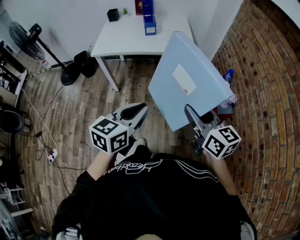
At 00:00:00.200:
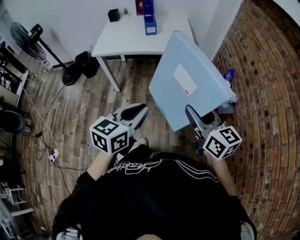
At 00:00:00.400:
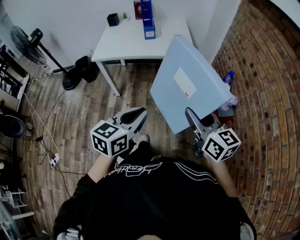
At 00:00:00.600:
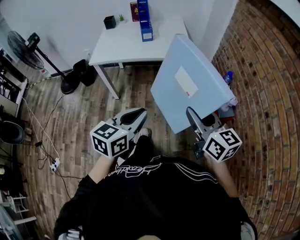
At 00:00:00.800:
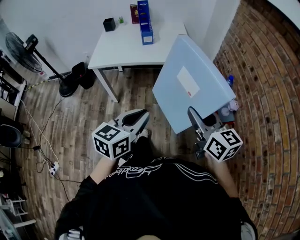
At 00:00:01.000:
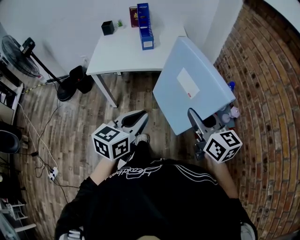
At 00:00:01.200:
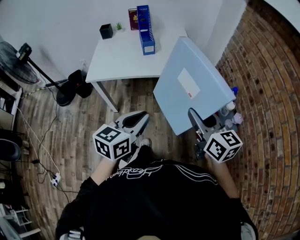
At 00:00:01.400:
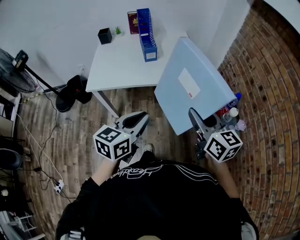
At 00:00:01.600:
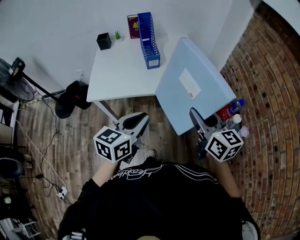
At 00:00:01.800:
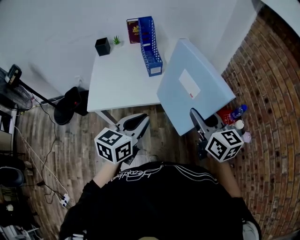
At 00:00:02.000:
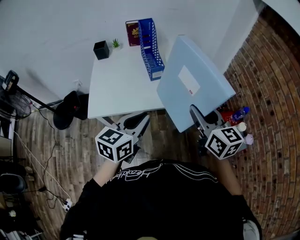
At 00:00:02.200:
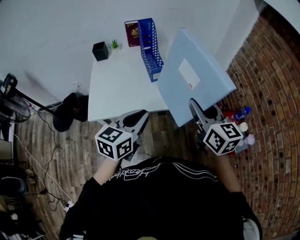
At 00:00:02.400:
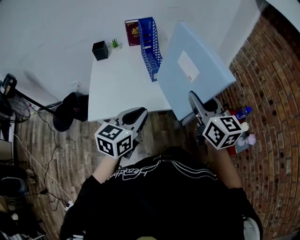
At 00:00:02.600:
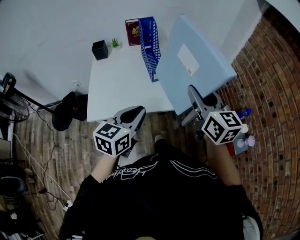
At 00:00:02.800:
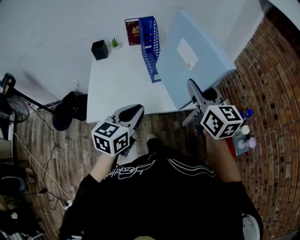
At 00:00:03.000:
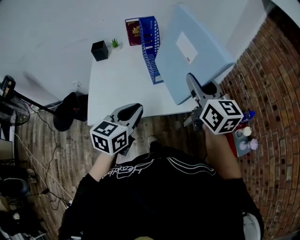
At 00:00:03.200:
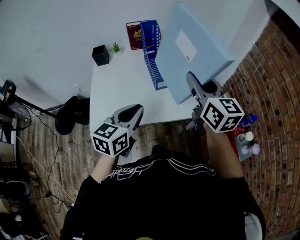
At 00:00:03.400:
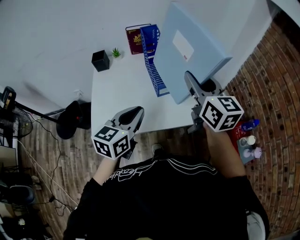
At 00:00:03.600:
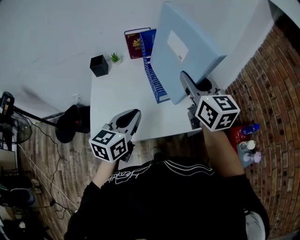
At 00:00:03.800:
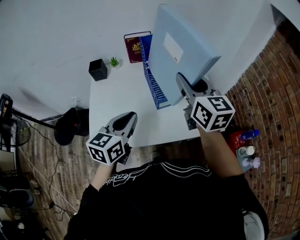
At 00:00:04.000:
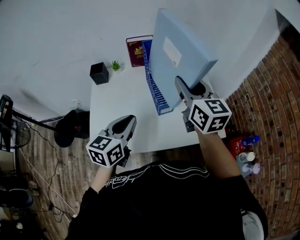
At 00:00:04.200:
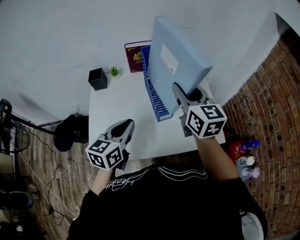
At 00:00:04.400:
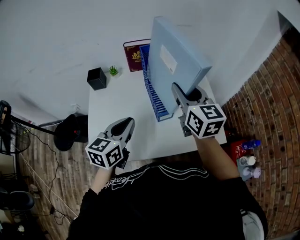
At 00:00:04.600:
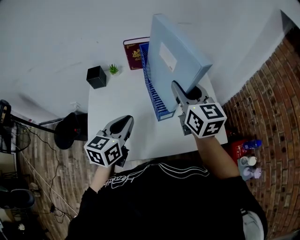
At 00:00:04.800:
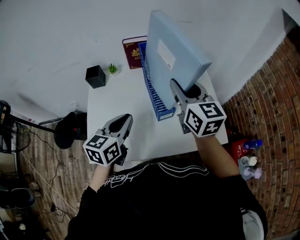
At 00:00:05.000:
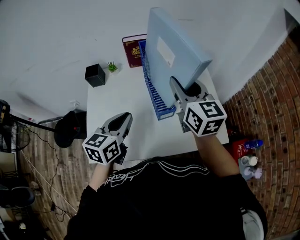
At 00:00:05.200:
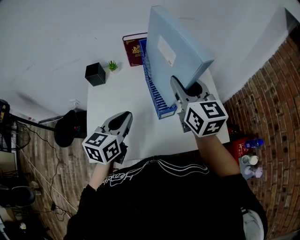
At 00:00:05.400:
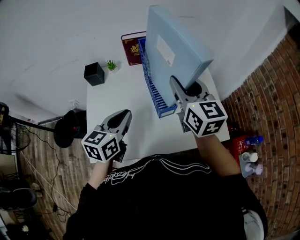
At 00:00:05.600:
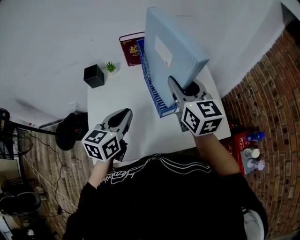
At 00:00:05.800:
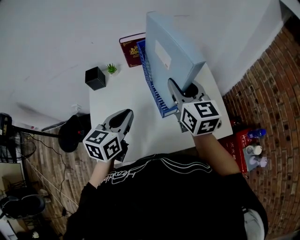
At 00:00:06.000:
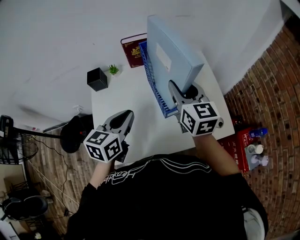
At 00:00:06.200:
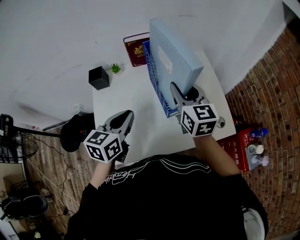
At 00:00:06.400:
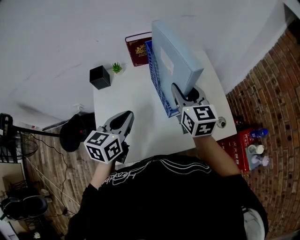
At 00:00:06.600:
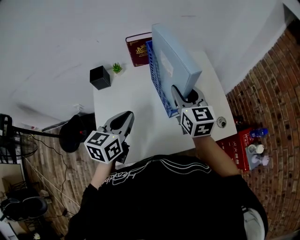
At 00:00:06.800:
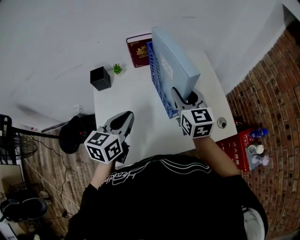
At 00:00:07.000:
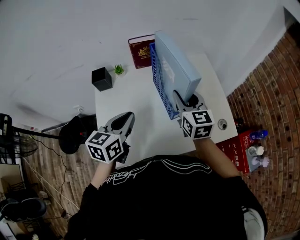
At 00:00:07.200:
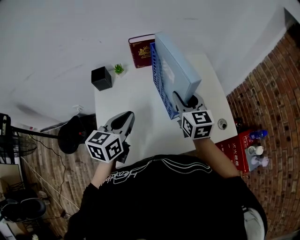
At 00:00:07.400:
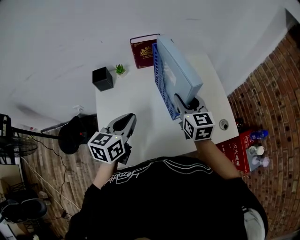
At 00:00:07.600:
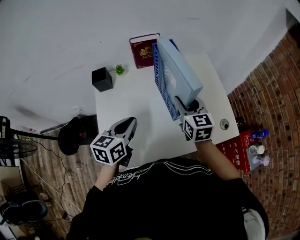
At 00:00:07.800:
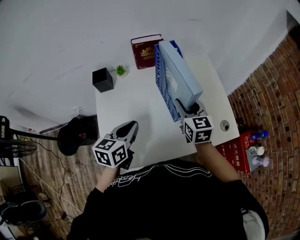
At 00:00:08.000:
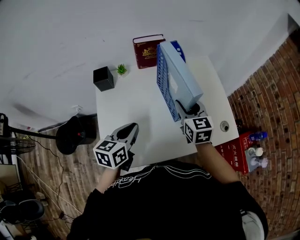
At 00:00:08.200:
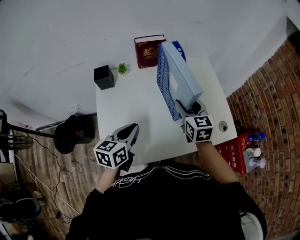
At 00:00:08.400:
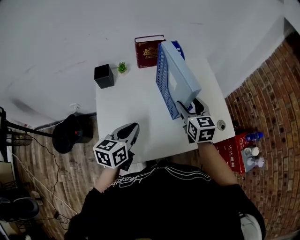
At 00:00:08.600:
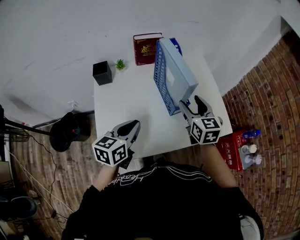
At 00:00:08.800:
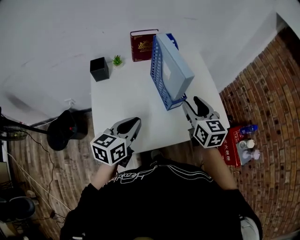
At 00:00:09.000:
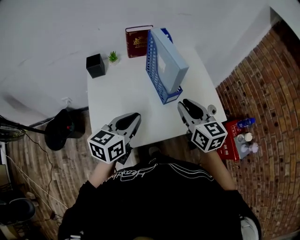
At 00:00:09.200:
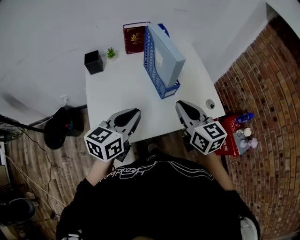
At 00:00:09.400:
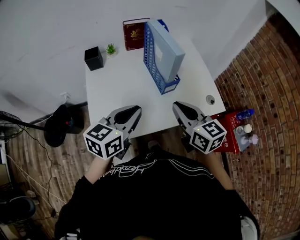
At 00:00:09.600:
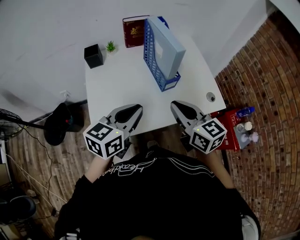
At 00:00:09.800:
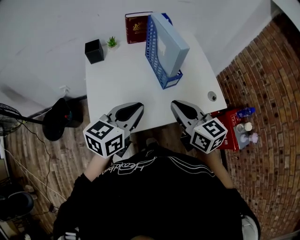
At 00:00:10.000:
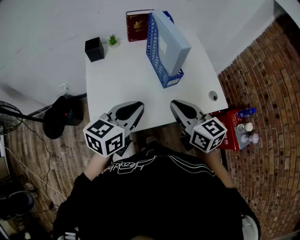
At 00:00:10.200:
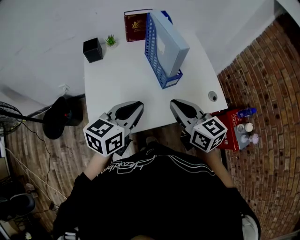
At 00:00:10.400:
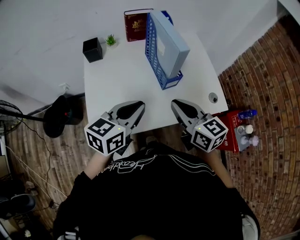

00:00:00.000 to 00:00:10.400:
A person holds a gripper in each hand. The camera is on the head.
00:00:00.000 to 00:00:01.400: The grippers both shift forward by approximately 20 cm.
00:00:01.400 to 00:00:03.000: The grippers both shift forward and to the left by about 30 cm.
00:00:03.000 to 00:00:04.400: The grippers both shift forward and to the left by roughly 20 cm.
00:00:04.400 to 00:00:06.000: There are only small adjustments of the grippers.
00:00:06.000 to 00:00:07.400: The right gripper shifts about 10 cm downward. Meanwhile the left gripper moves about 5 cm.
00:00:07.400 to 00:00:09.000: The right gripper goes some 15 cm backward, and opens and closes again. The left gripper travels backward by roughly 10 cm.
00:00:09.000 to 00:00:10.400: The right gripper shifts by roughly 5 cm.

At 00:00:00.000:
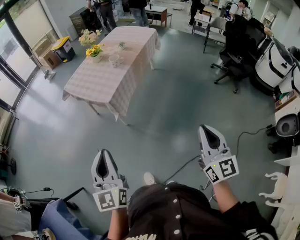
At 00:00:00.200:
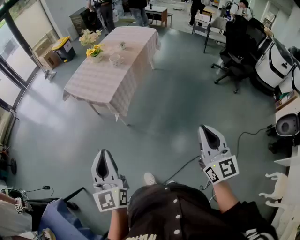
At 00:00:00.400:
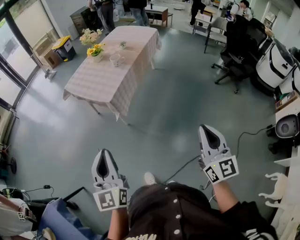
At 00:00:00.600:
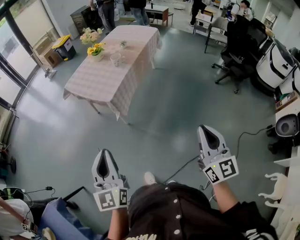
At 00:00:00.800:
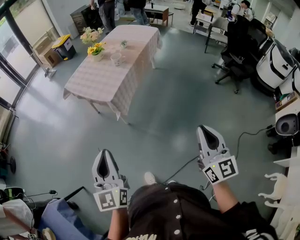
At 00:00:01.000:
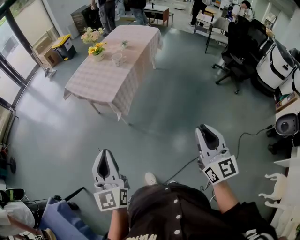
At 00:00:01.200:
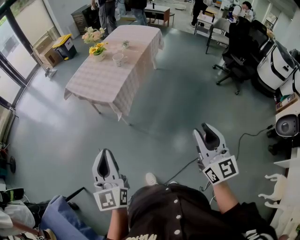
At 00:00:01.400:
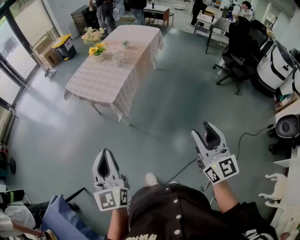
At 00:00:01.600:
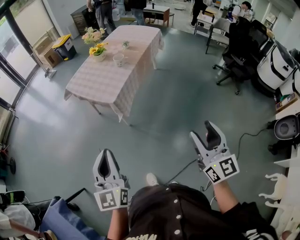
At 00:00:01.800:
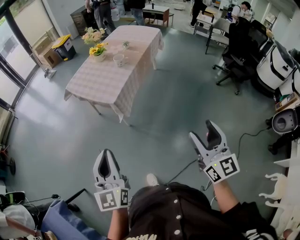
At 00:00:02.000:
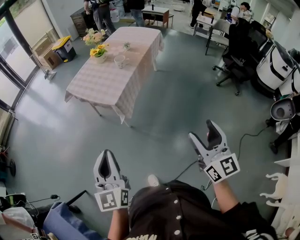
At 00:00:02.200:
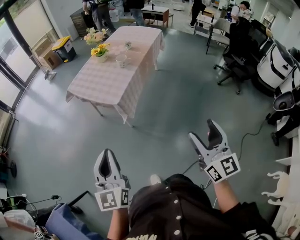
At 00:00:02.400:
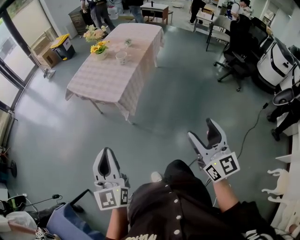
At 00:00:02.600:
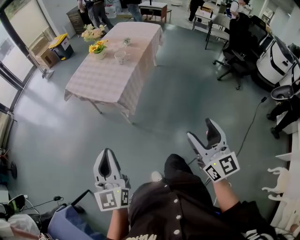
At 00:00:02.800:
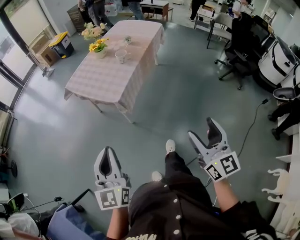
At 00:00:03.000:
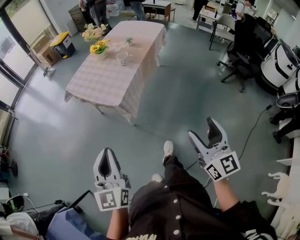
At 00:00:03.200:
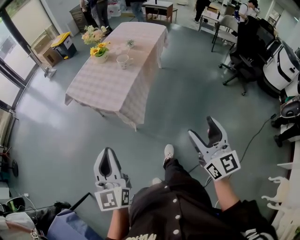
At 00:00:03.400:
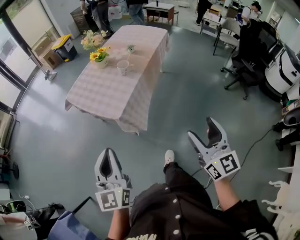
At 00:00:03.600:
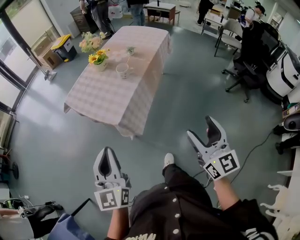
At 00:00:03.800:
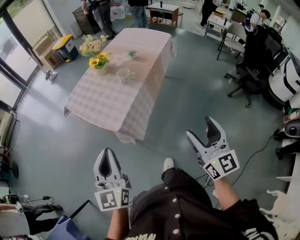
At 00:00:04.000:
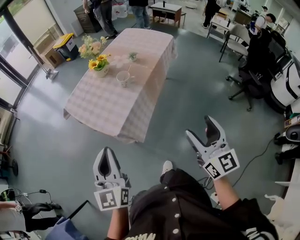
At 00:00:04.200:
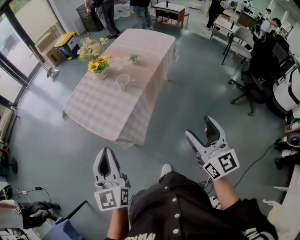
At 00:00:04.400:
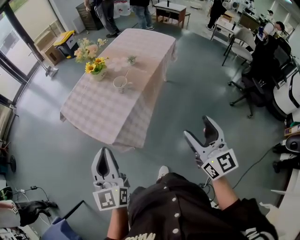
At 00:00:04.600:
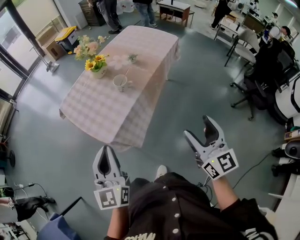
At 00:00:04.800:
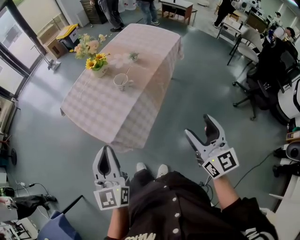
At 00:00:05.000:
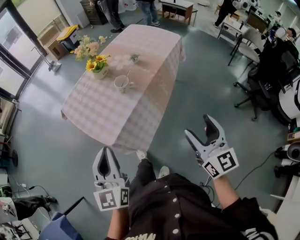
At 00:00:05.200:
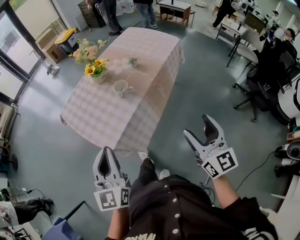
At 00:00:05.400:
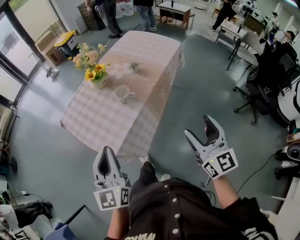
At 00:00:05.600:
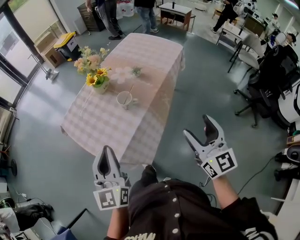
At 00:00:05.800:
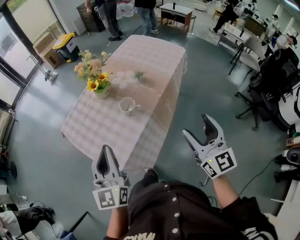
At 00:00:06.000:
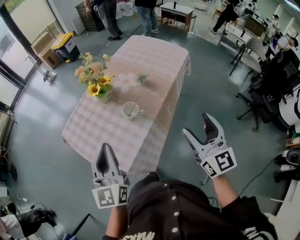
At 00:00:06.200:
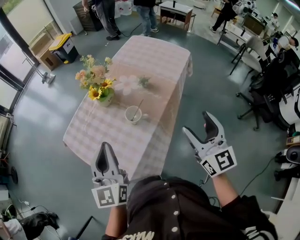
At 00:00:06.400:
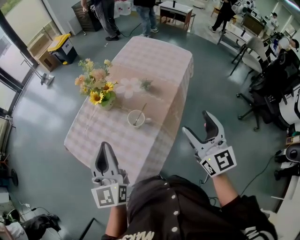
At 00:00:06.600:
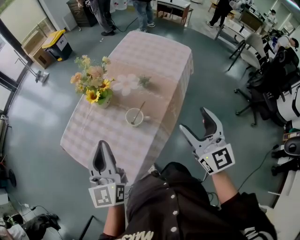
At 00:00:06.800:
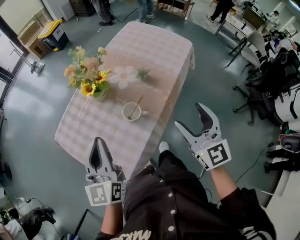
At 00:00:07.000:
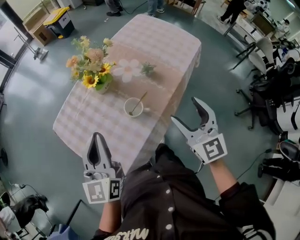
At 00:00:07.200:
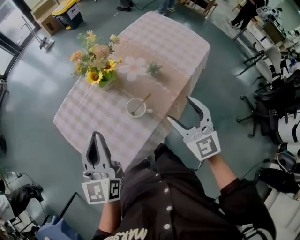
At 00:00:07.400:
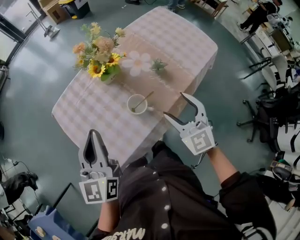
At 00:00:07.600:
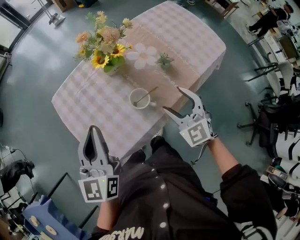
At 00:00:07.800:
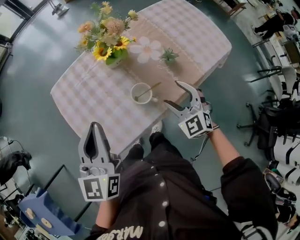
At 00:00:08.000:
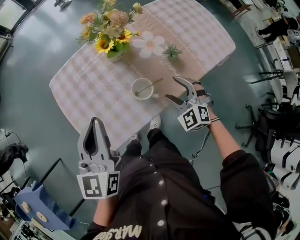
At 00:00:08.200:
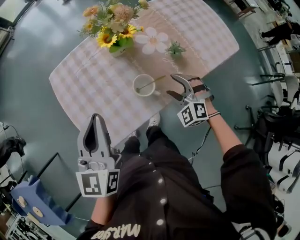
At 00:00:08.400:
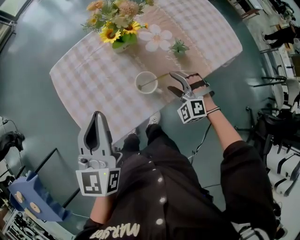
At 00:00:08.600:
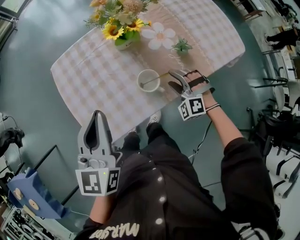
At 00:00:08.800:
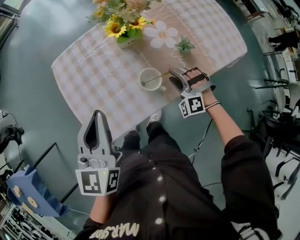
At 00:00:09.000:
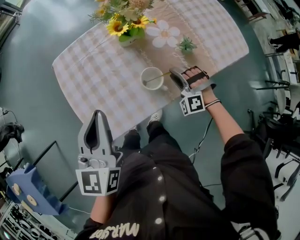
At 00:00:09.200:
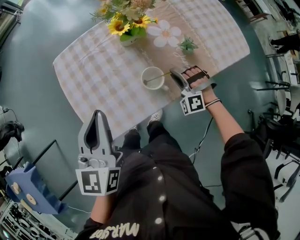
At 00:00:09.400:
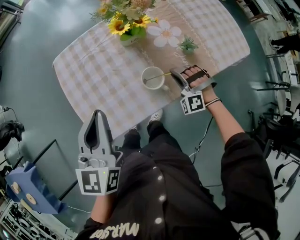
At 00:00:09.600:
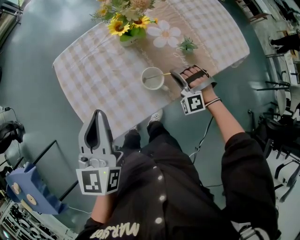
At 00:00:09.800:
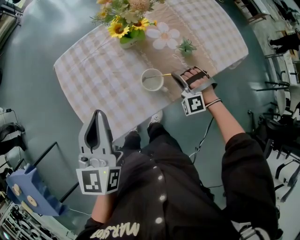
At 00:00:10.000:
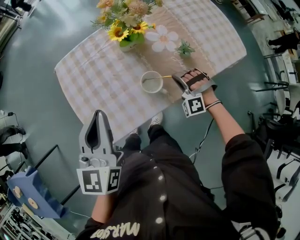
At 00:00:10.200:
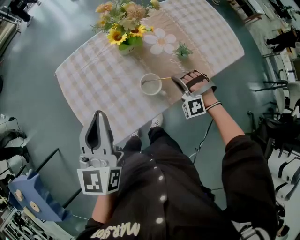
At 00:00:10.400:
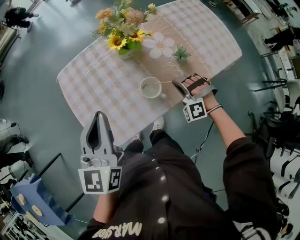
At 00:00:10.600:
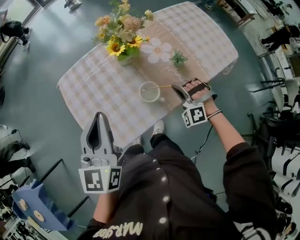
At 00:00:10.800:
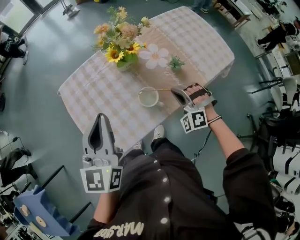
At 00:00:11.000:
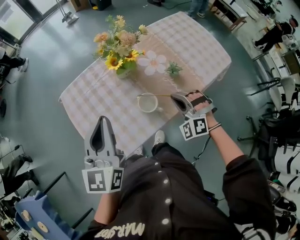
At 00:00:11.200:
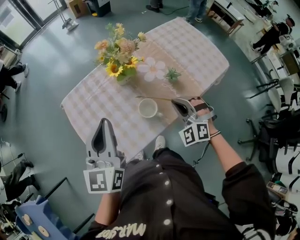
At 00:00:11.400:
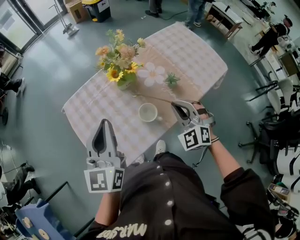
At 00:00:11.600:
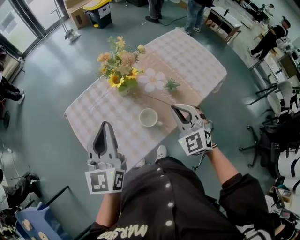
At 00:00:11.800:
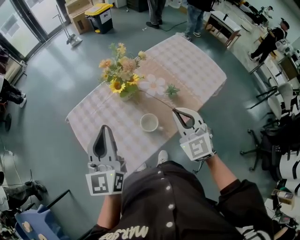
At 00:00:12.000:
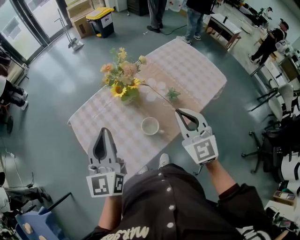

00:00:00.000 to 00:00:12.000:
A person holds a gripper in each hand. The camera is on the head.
00:00:00.000 to 00:00:01.600: The right gripper shifts by approximately 5 cm, and opens.
00:00:01.600 to 00:00:03.000: Both grippers travel together forward, roughly 10 cm.
00:00:03.000 to 00:00:04.400: The right gripper goes about 30 cm forward; the left gripper shifts some 30 cm forward and to the right.
00:00:04.400 to 00:00:06.000: The grippers both shift forward by roughly 25 cm.
00:00:06.000 to 00:00:07.600: The right gripper goes about 30 cm forward and downward, and swivels approximately 50 degrees. Meanwhile the left gripper heads forward, covering approximately 15 cm.
00:00:07.600 to 00:00:09.000: The right gripper travels downward by approximately 15 cm, rotates around the line of its fingers by about 60 degrees, counterclockwise from behind, and closes.
00:00:09.000 to 00:00:10.400: There are only small adjustments of the grippers.
00:00:10.400 to 00:00:12.000: The right gripper shifts about 25 cm upward, and twists some 60 degrees clockwise, seen from behind, while the left gripper is displaced upward by roughly 5 cm.

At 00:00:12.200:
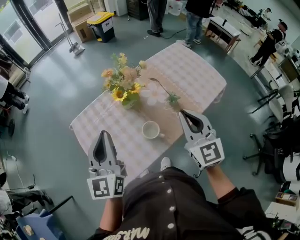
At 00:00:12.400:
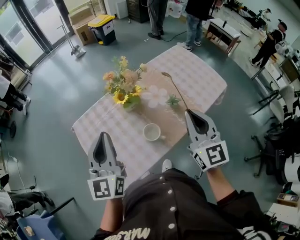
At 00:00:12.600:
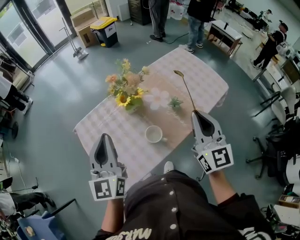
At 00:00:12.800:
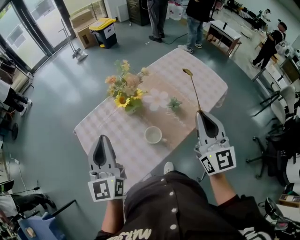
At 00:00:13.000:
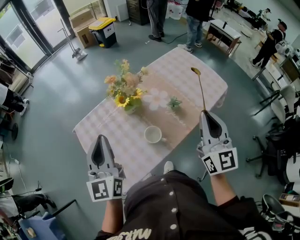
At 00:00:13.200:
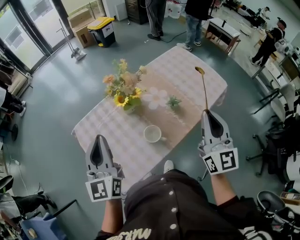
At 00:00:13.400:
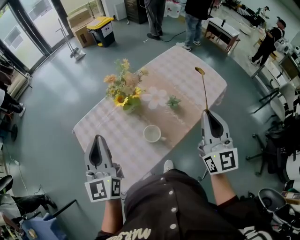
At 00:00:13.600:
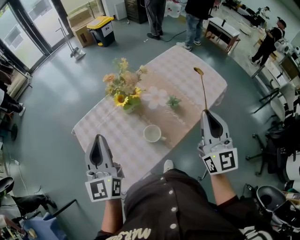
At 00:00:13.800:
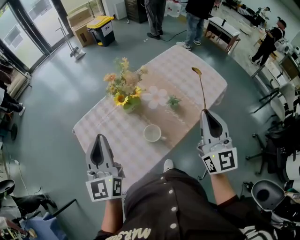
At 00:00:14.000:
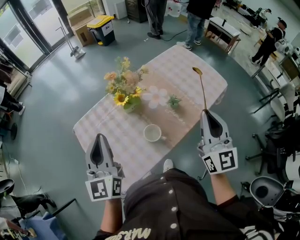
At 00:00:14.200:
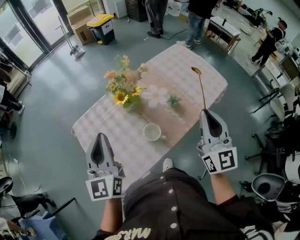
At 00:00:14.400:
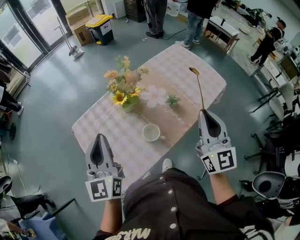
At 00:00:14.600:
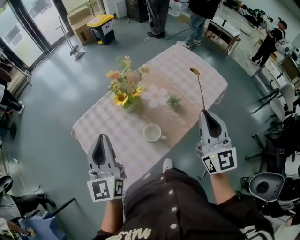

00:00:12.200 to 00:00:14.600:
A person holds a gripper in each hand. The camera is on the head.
00:00:12.200 to 00:00:13.400: The right gripper is displaced to the right by some 5 cm.
00:00:13.400 to 00:00:14.600: The grippers stay close to where they were, moving slightly.
